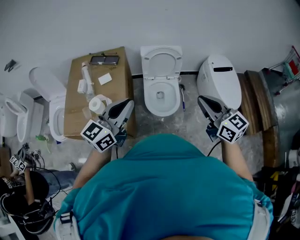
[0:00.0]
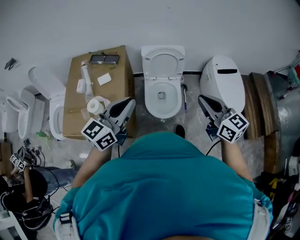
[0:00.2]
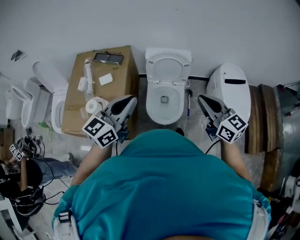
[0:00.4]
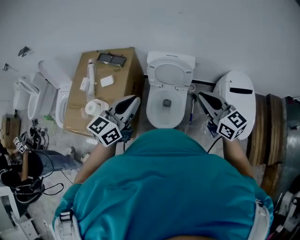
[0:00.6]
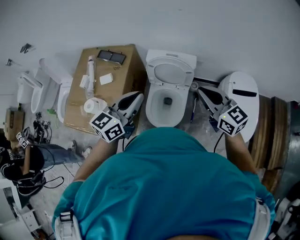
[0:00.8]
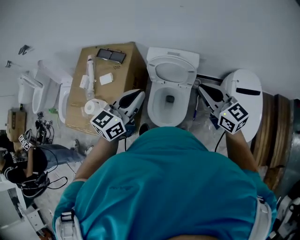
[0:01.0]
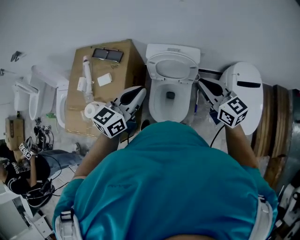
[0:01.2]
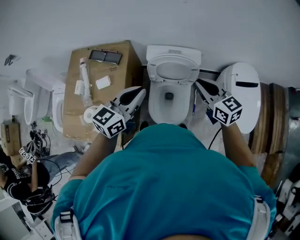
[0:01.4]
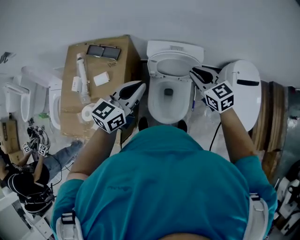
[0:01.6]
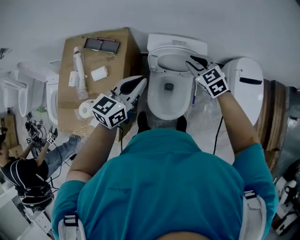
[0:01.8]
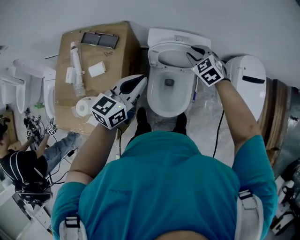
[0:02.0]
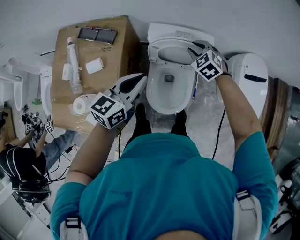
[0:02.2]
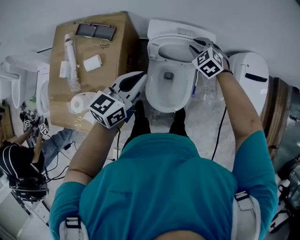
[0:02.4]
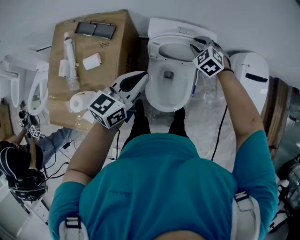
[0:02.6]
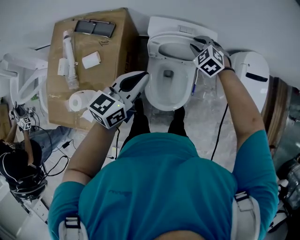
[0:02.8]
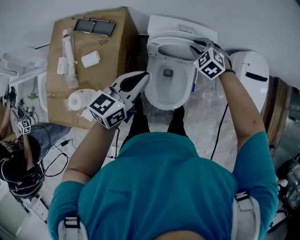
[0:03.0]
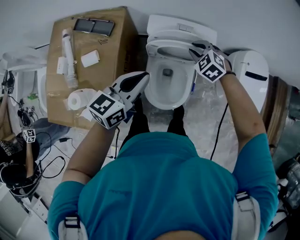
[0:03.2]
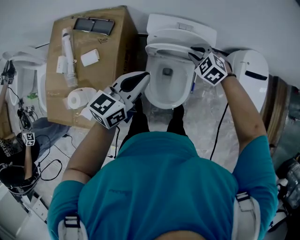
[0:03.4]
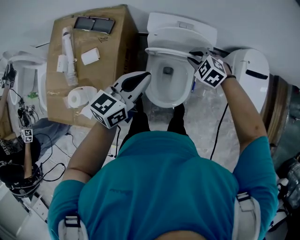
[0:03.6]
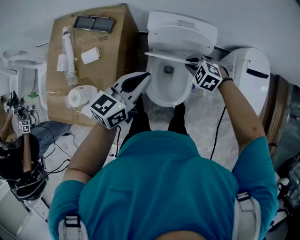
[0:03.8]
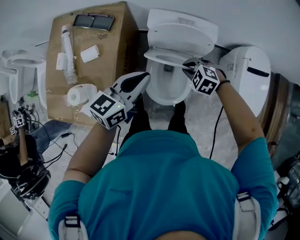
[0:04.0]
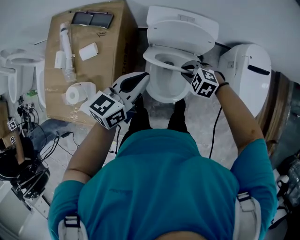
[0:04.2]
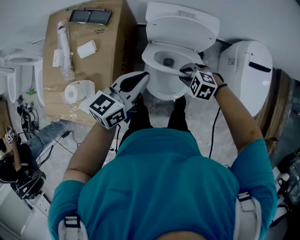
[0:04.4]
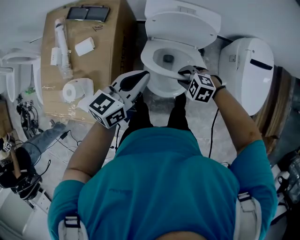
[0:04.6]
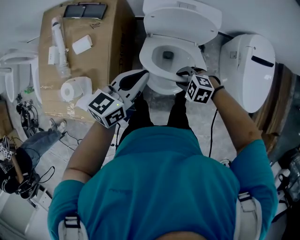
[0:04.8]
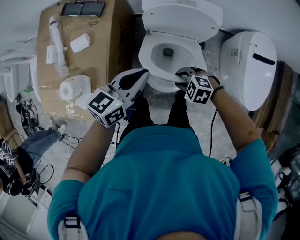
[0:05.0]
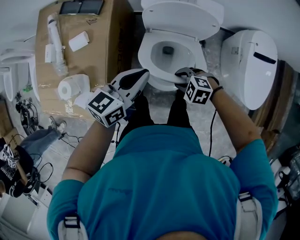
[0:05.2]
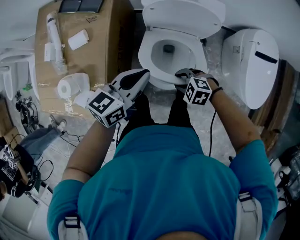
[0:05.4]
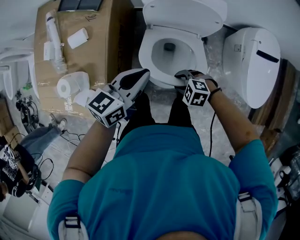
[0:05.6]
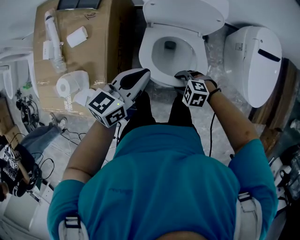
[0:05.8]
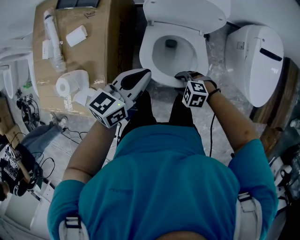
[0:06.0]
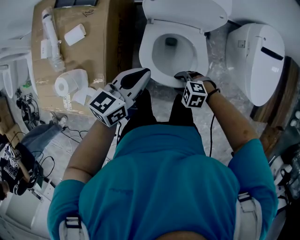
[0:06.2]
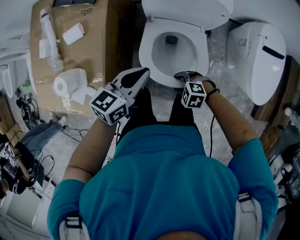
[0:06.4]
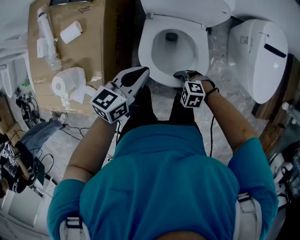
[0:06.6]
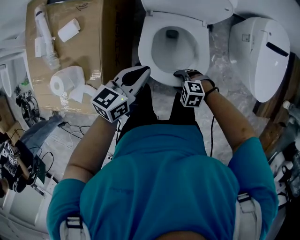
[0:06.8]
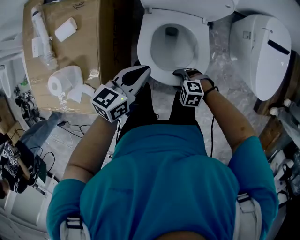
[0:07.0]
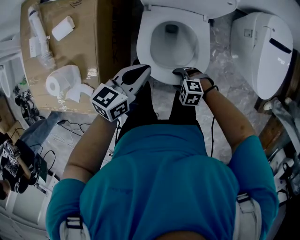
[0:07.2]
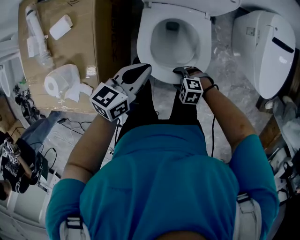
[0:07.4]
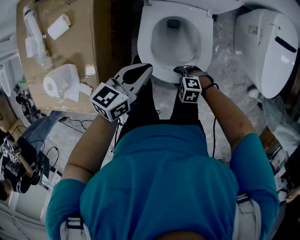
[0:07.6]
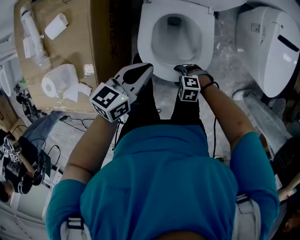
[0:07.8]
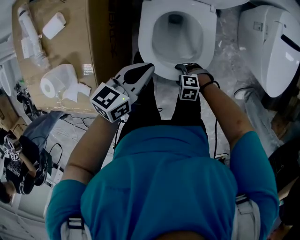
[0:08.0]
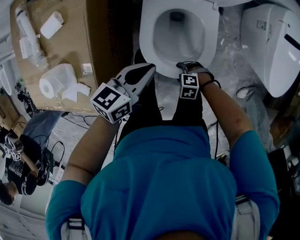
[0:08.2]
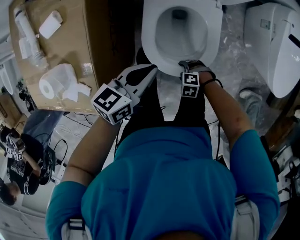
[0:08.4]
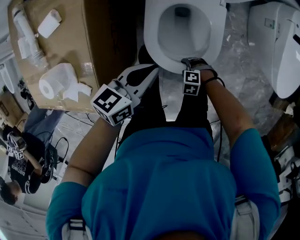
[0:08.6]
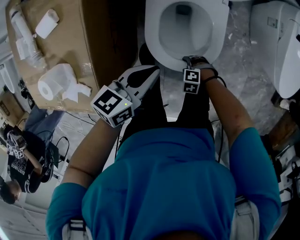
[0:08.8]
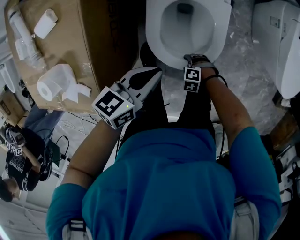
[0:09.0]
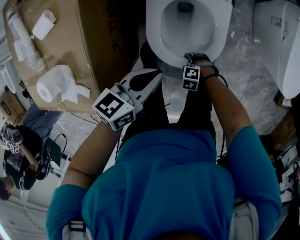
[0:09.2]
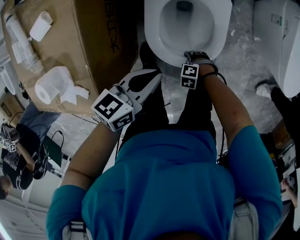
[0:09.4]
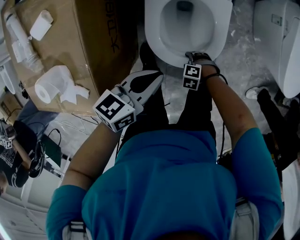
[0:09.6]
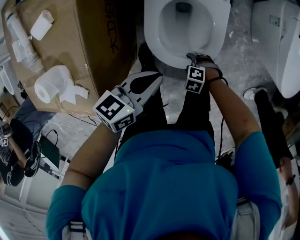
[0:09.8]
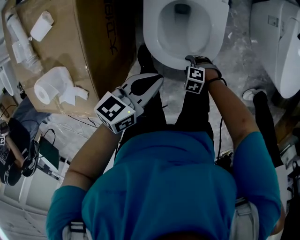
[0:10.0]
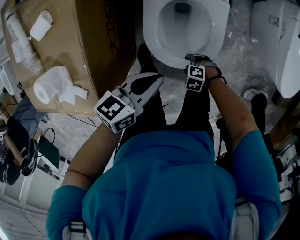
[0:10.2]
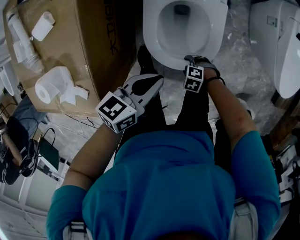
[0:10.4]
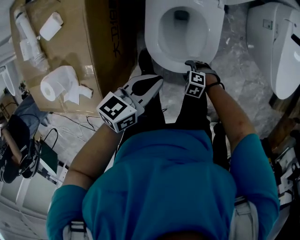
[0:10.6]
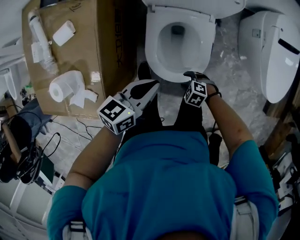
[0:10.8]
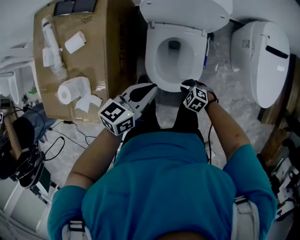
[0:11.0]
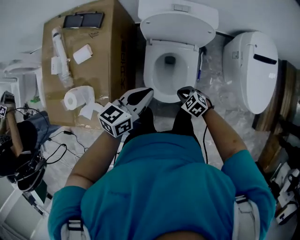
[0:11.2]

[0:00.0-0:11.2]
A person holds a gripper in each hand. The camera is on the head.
0:00.0 to 0:01.6: The right gripper goes approximately 40 cm forward and downward, and changes its angle by roughly 20 degrees. The left gripper is displaced forward by some 30 cm.
0:01.6 to 0:03.2: The left gripper goes approximately 10 cm downward. Meanwhile the right gripper moves downward and forward, about 20 cm, and rotates about 40 degrees.
0:03.2 to 0:04.8: The left gripper heads downward, covering some 5 cm; the right gripper changes place by about 25 cm, and turns by about 30 degrees.
0:04.8 to 0:06.4: Both grippers move downward, approximately 10 cm.
0:06.4 to 0:08.0: The grippers both shift downward by about 10 cm.
0:08.0 to 0:09.6: The left gripper goes about 5 cm downward; the right gripper travels downward by approximately 10 cm.
0:09.6 to 0:11.2: Both grippers move upward, approximately 25 cm. The right gripper turns by some 40 degrees, and closes up.

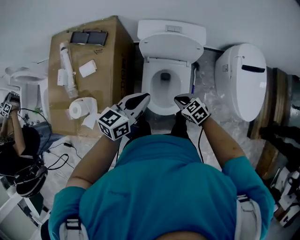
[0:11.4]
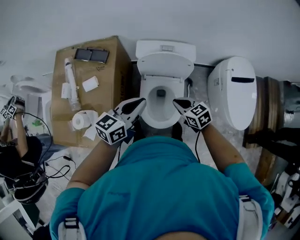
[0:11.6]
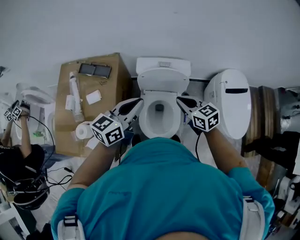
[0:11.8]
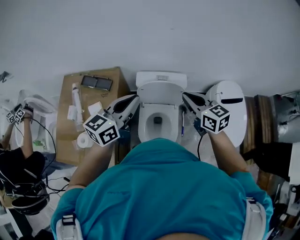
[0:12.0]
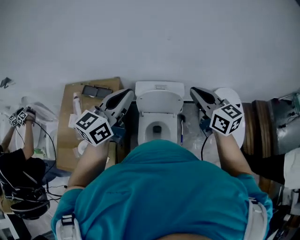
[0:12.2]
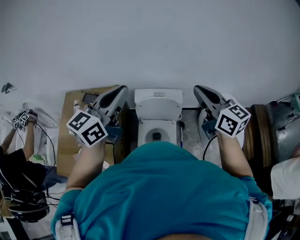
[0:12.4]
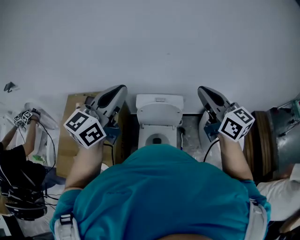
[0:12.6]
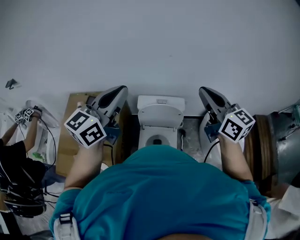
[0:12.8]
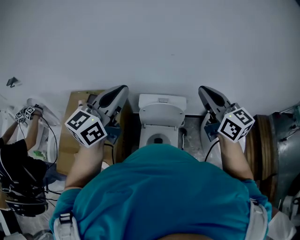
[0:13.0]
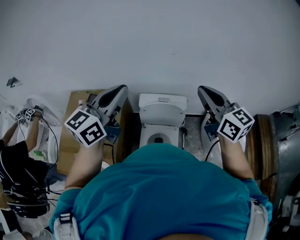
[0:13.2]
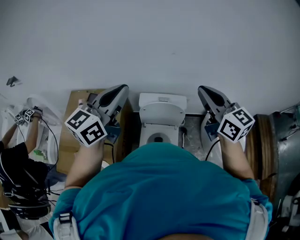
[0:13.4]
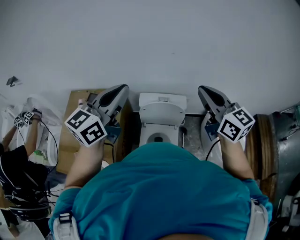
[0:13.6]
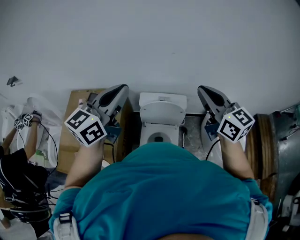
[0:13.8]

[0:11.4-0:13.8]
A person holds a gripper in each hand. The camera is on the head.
0:11.4 to 0:12.6: The grippers both shift upward by about 50 cm. The right gripper tips its fingers upward by about 50 degrees. The left gripper rotates some 40 degrees.
0:12.6 to 0:13.8: The grippers make only small movements.

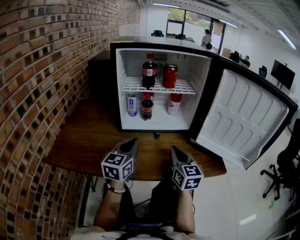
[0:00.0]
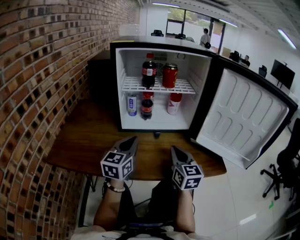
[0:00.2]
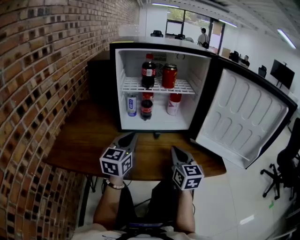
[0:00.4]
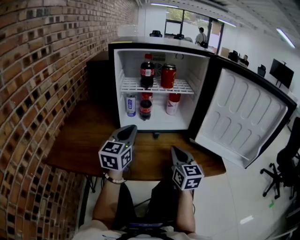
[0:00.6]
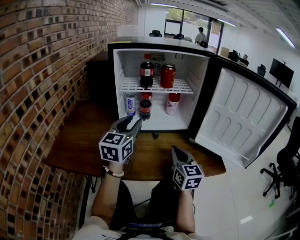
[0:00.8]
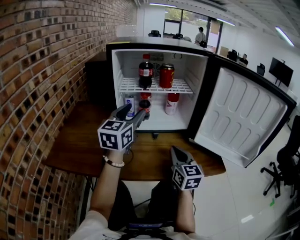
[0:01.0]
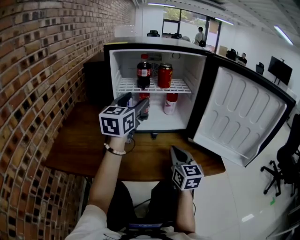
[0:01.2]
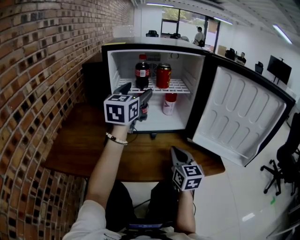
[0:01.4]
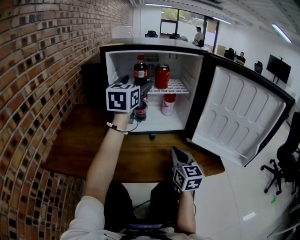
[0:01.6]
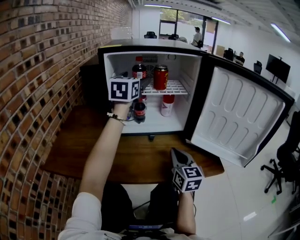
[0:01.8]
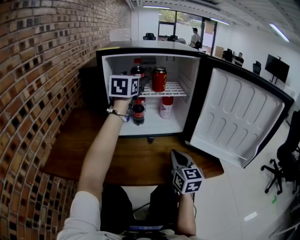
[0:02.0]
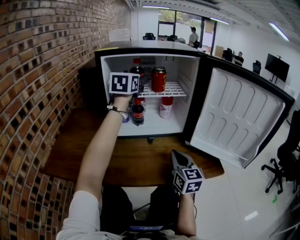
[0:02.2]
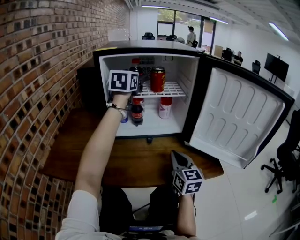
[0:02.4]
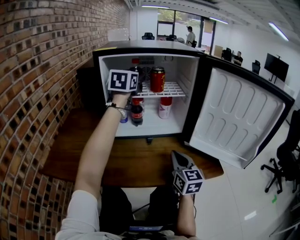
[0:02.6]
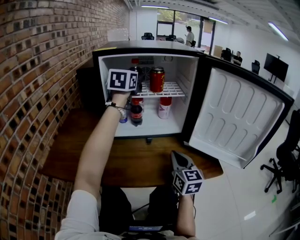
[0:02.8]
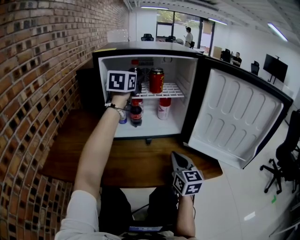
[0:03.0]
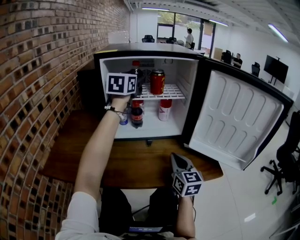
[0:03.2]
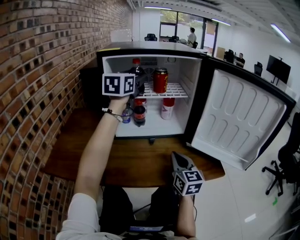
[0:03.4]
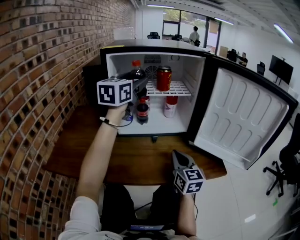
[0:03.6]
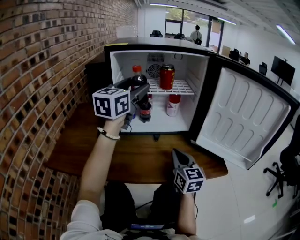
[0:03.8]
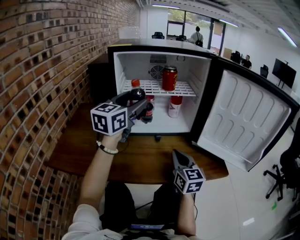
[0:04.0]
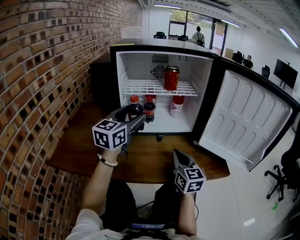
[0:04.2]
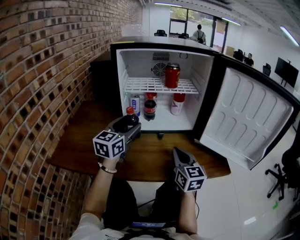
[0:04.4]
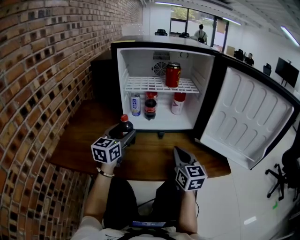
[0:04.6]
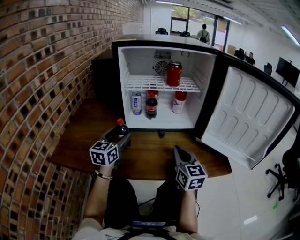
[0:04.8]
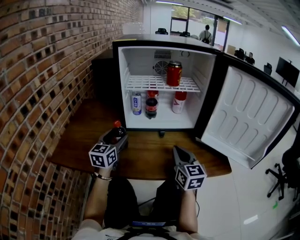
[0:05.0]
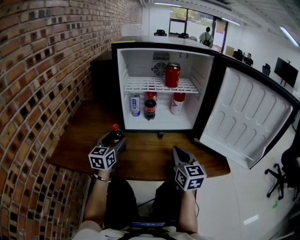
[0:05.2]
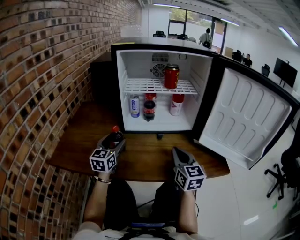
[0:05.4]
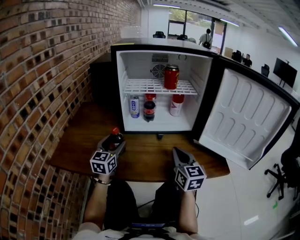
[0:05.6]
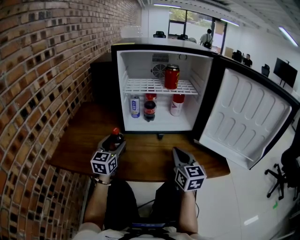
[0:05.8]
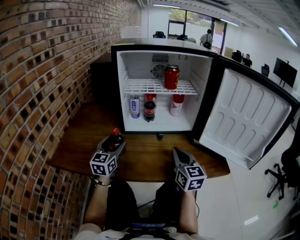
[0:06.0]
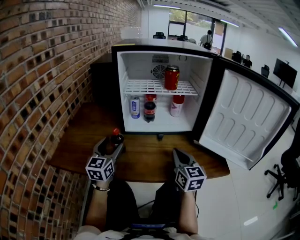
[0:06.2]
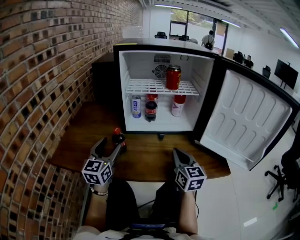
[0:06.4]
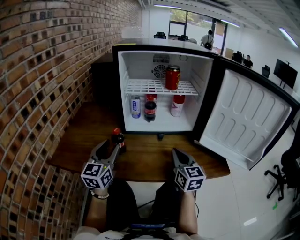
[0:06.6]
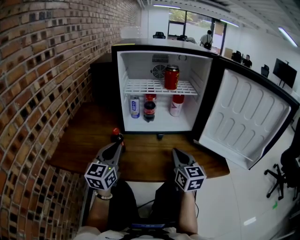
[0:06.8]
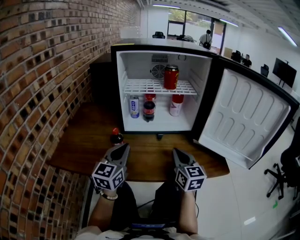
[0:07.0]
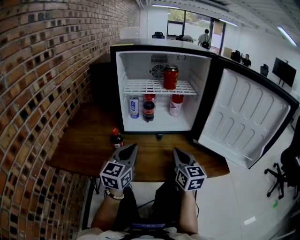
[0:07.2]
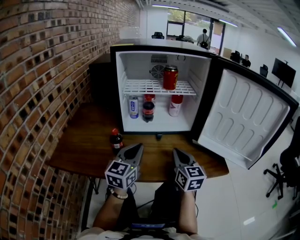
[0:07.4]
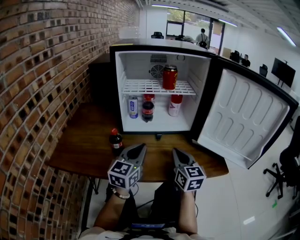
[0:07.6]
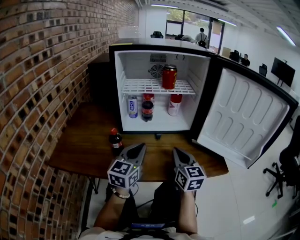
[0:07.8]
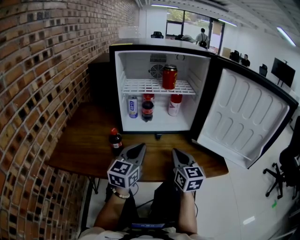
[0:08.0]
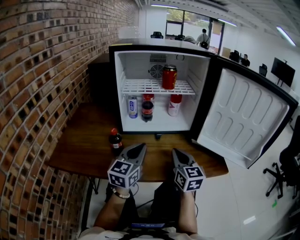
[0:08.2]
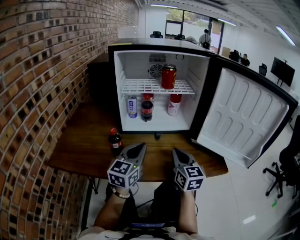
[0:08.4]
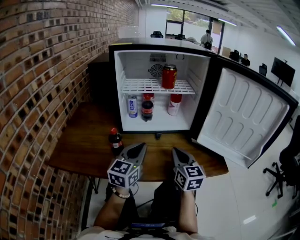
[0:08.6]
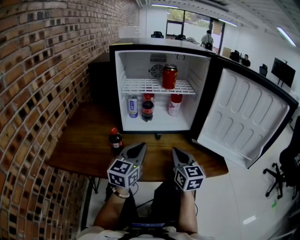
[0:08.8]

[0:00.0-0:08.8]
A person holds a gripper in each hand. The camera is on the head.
0:00.0 to 0:01.4: The left gripper heads upward and forward, covering approximately 20 cm, and opens up.
0:01.4 to 0:03.0: The left gripper goes about 10 cm forward.
0:03.0 to 0:04.4: The left gripper moves backward and downward, roughly 25 cm.
0:04.4 to 0:05.8: The left gripper goes some 15 cm downward and to the left.
0:05.8 to 0:07.4: The left gripper moves to the right, backward and upward, approximately 15 cm, and closes its fingers.
0:07.4 to 0:08.8: The grippers move only a little.

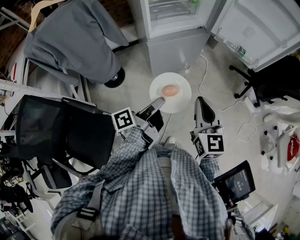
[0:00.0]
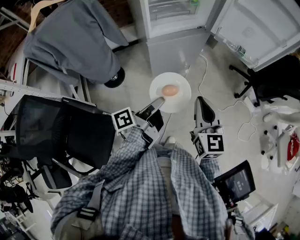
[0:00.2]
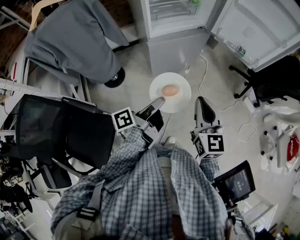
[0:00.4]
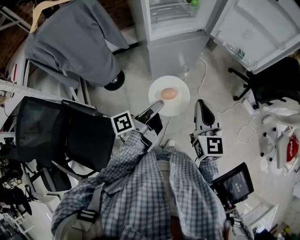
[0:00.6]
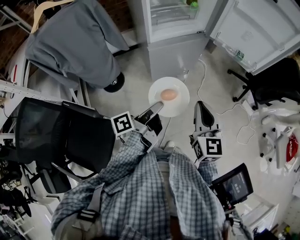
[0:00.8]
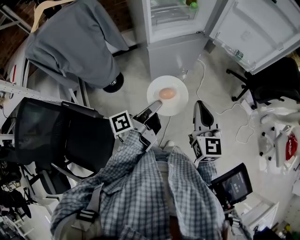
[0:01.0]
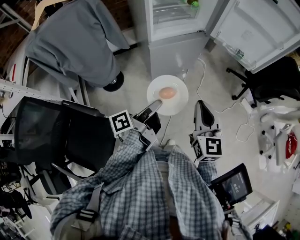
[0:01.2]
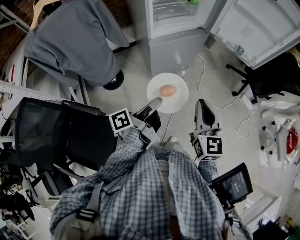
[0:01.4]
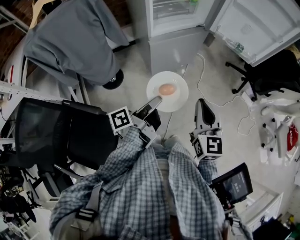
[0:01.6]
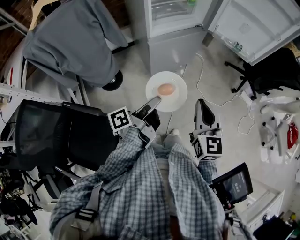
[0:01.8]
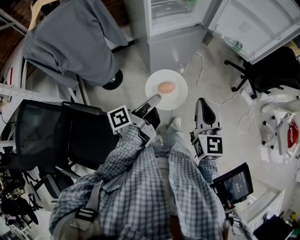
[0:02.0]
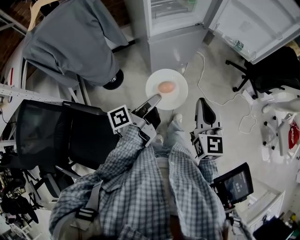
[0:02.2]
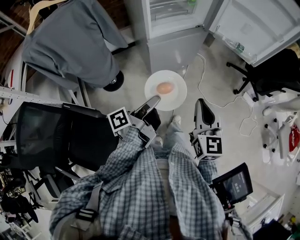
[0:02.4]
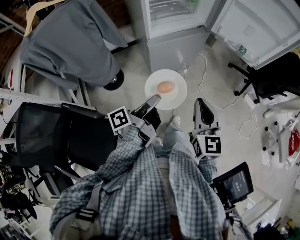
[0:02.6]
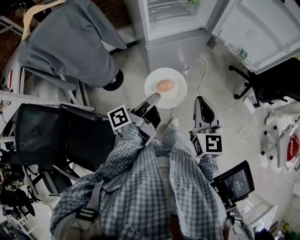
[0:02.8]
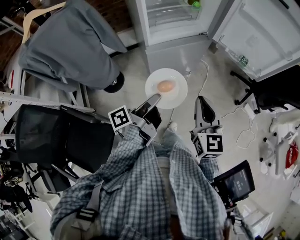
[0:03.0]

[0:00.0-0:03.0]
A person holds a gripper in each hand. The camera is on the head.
0:00.0 to 0:01.6: The right gripper shifts by approximately 5 cm.
0:01.6 to 0:03.0: The right gripper changes place by approximately 10 cm.
